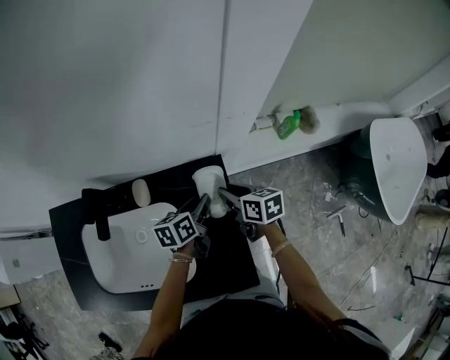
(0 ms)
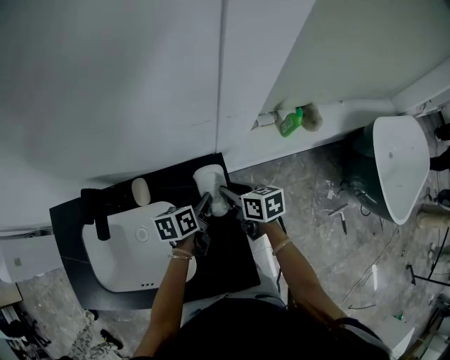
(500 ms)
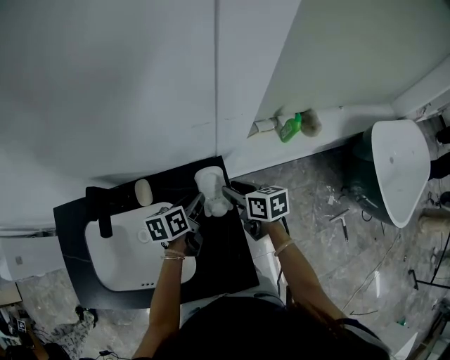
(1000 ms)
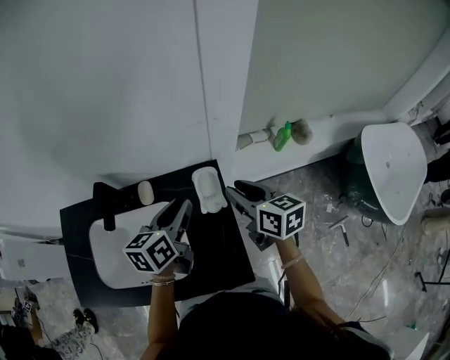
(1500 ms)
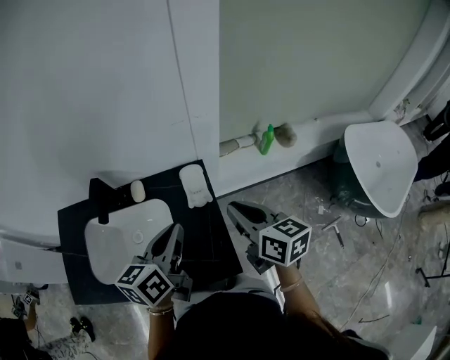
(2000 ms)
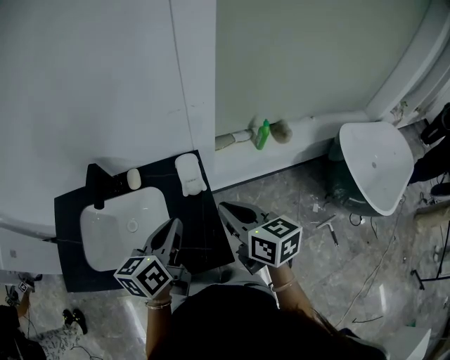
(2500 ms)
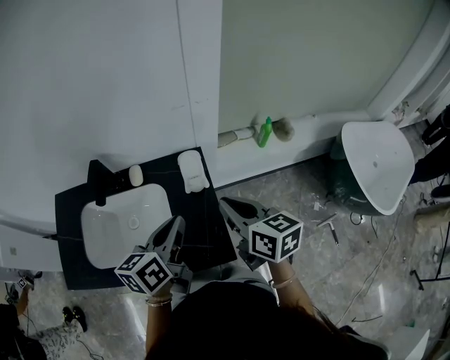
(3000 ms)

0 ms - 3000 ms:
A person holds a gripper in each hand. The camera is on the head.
0 ms - 1500 ms: Both grippers move upward, about 15 cm.
1500 ms - 3000 ms: The right gripper is displaced backward and upward by about 15 cm, and closes its fingers, while the left gripper moves backward, some 15 cm, and closes.

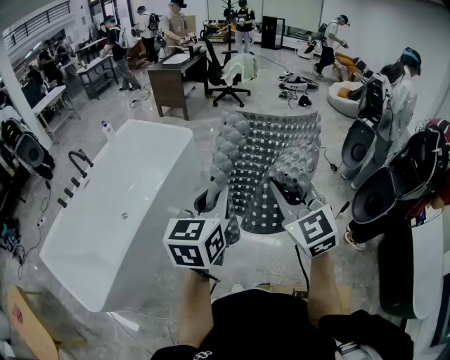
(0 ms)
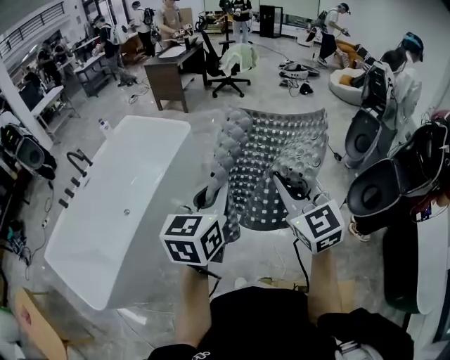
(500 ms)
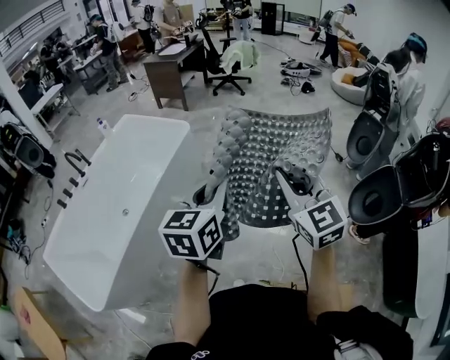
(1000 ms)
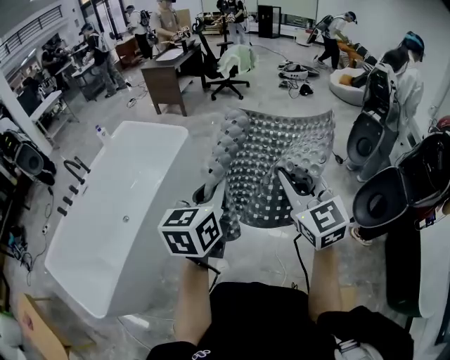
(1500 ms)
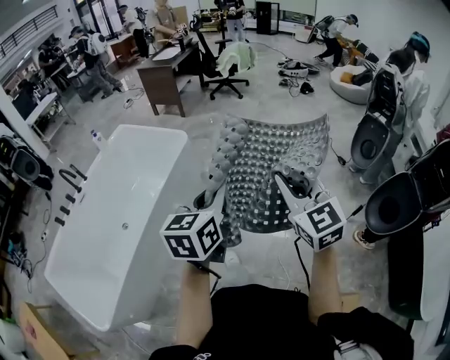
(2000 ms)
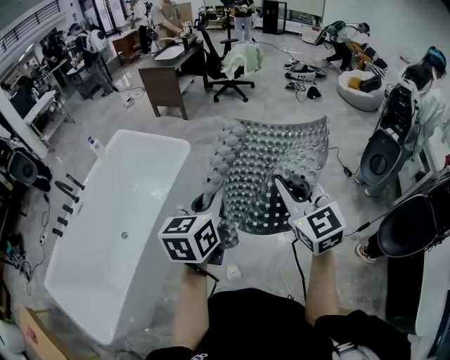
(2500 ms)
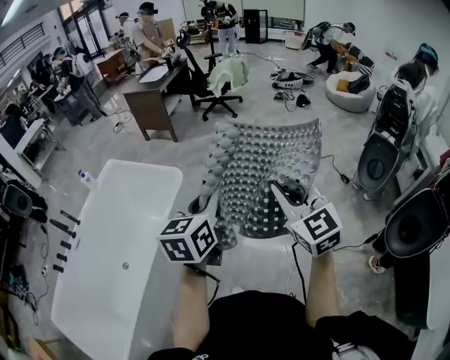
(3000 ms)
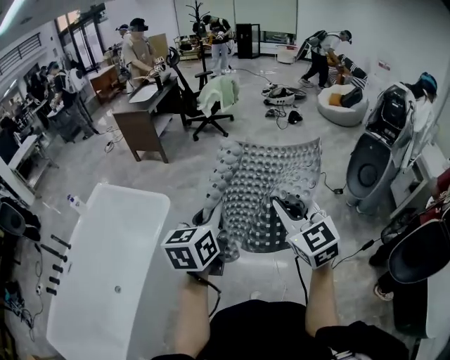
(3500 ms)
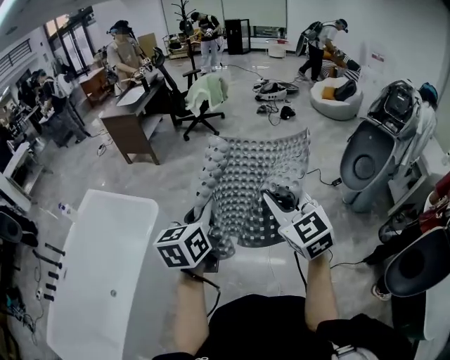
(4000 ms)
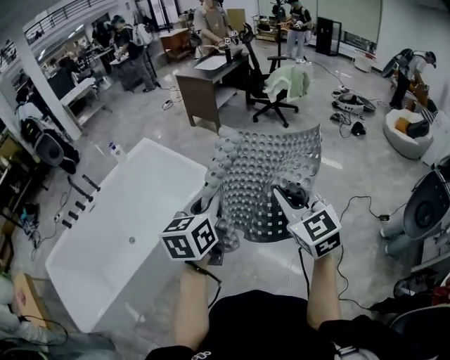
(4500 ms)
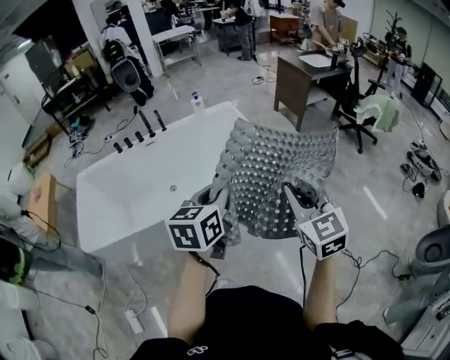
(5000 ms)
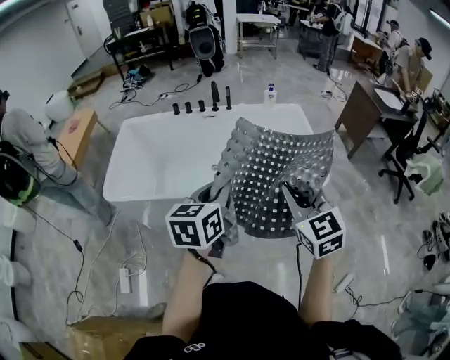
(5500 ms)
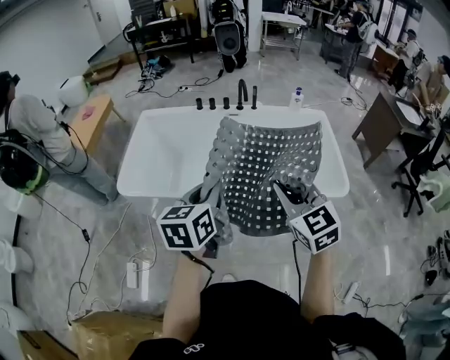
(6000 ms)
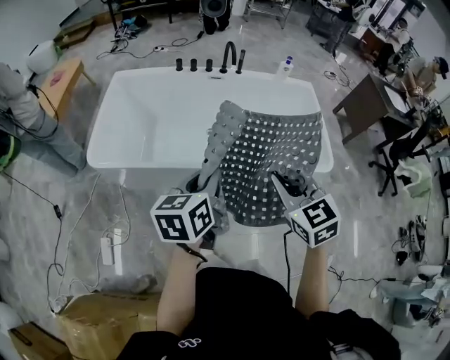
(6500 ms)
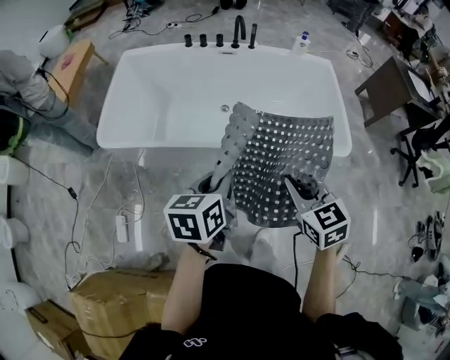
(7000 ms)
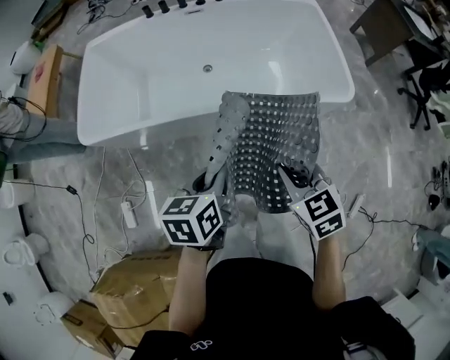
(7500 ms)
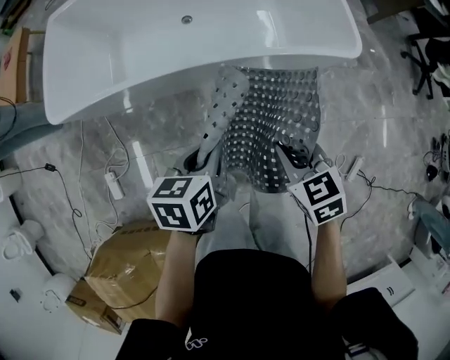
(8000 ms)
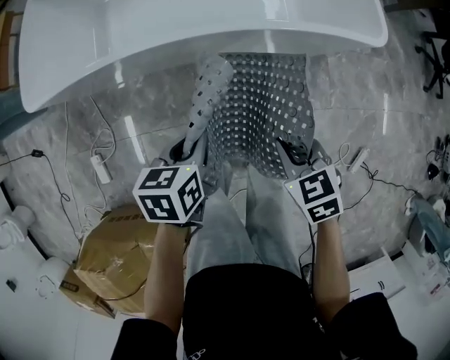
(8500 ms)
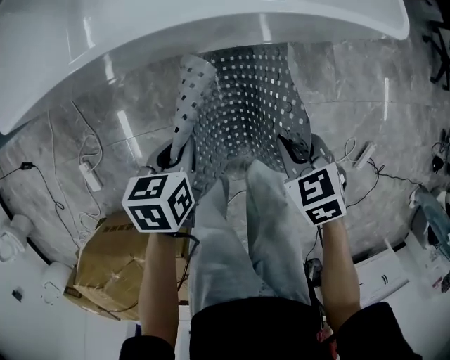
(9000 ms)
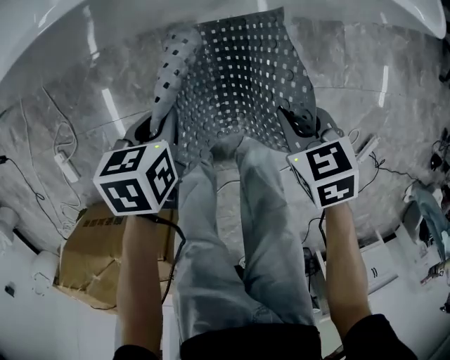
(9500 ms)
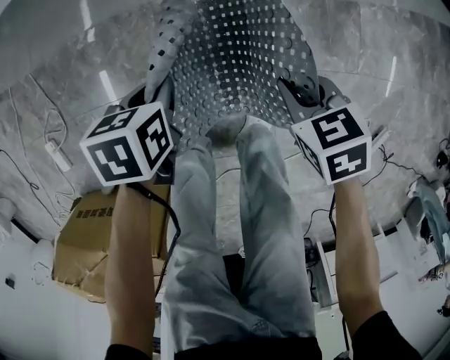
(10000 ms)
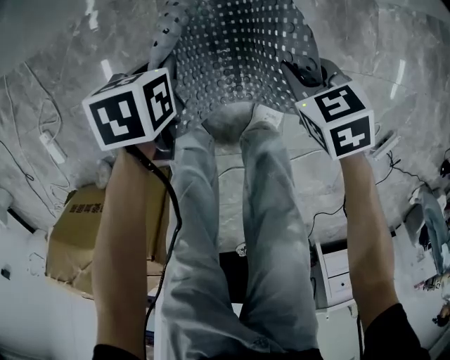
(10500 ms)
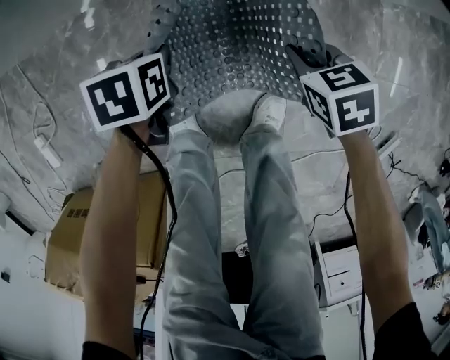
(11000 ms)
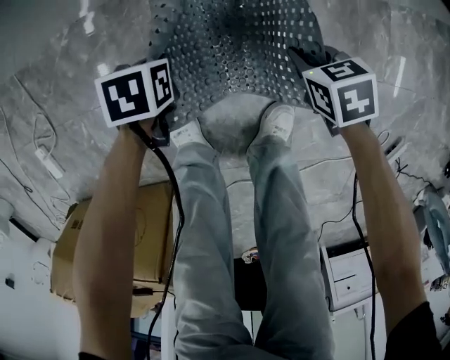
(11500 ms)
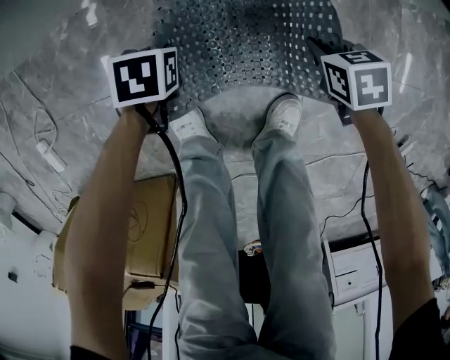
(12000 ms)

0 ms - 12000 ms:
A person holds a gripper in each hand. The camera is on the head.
0 ms - 2000 ms: Both grippers move forward, some 15 cm.
2000 ms - 4000 ms: Both grippers move forward, roughly 35 cm.
4000 ms - 6000 ms: The pair of grippers is taken about 60 cm. The left gripper rotates roughly 80 degrees, while the right gripper turns by roughly 80 degrees.
6000 ms - 8000 ms: The left gripper is displaced downward and to the right by roughly 30 cm, and turns by about 30 degrees. Meanwhile the right gripper heads downward, covering roughly 30 cm, and points its fingers about 30 degrees further downward.
8000 ms - 10000 ms: Both grippers travel together downward, roughly 40 cm. The left gripper turns by about 20 degrees.
10000 ms - 12000 ms: Both grippers move downward, some 20 cm.

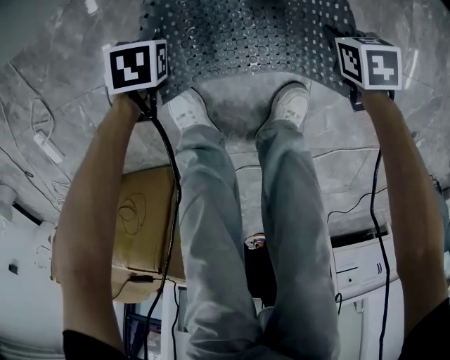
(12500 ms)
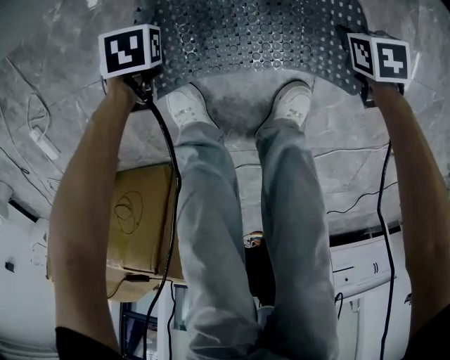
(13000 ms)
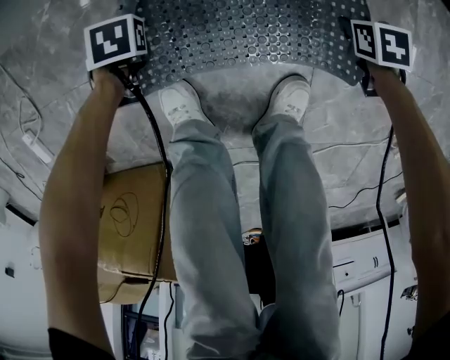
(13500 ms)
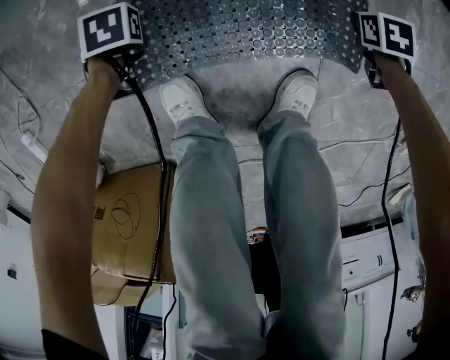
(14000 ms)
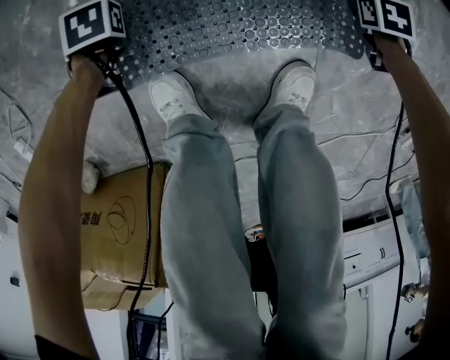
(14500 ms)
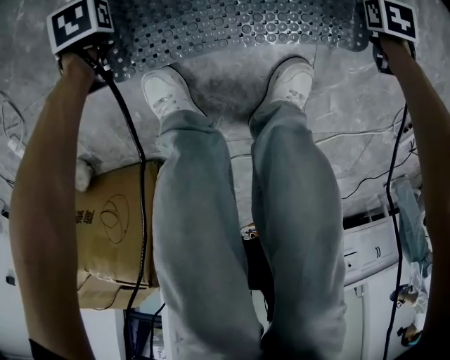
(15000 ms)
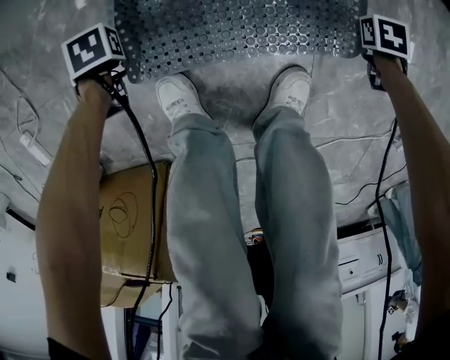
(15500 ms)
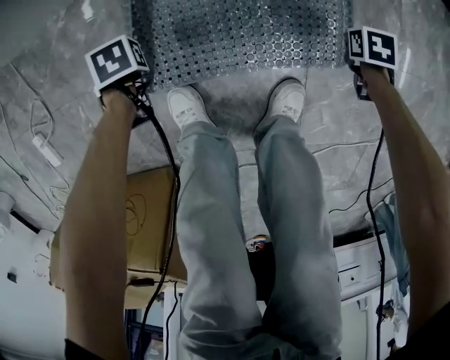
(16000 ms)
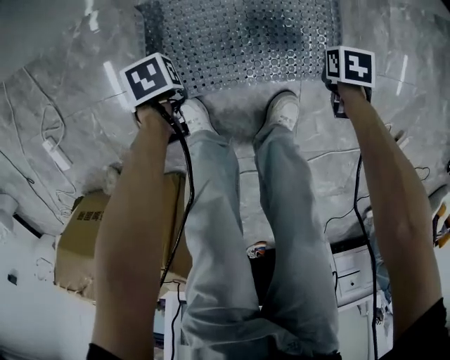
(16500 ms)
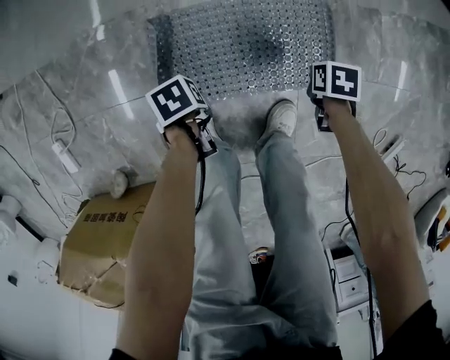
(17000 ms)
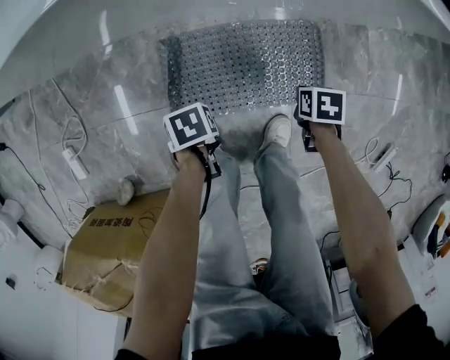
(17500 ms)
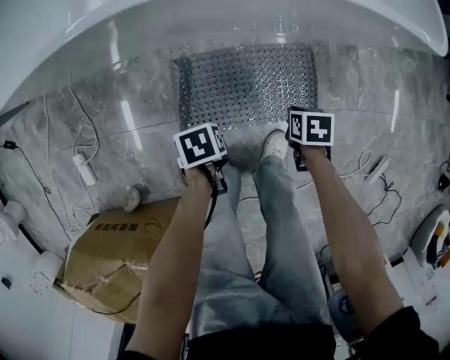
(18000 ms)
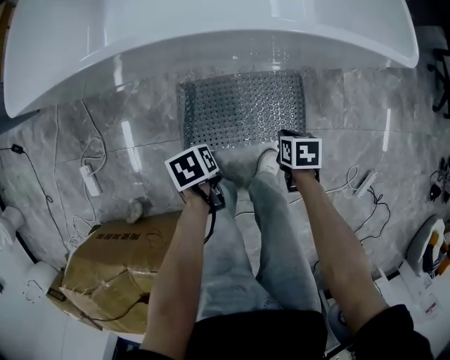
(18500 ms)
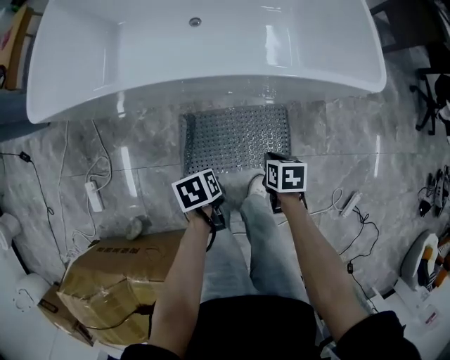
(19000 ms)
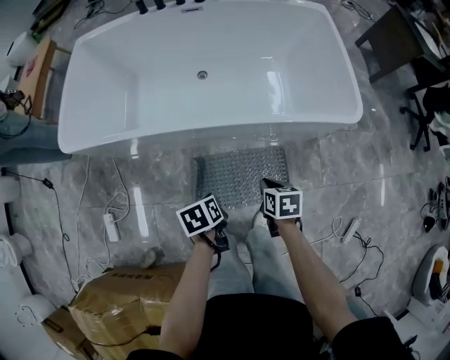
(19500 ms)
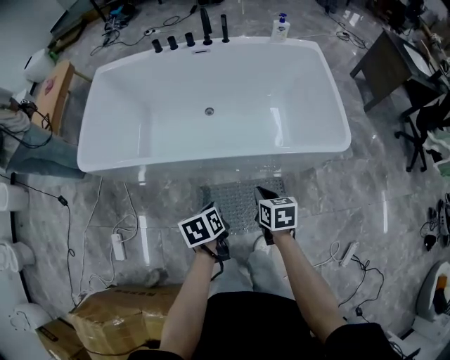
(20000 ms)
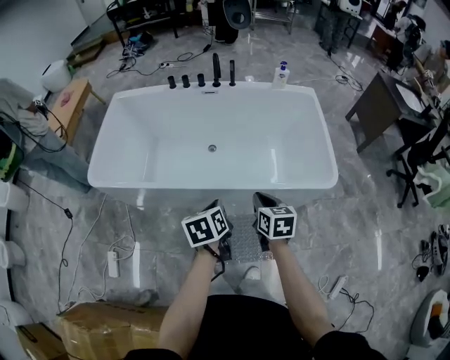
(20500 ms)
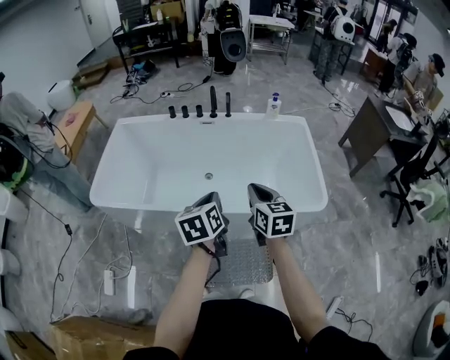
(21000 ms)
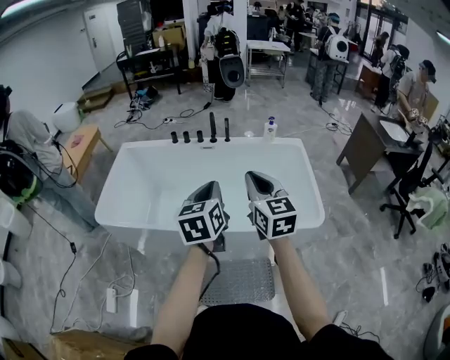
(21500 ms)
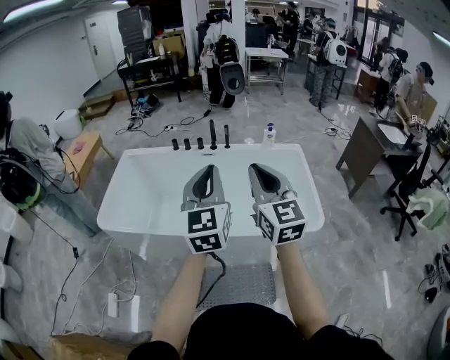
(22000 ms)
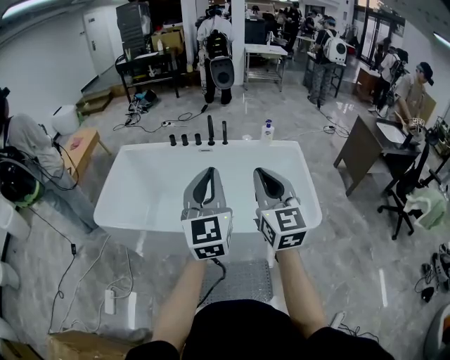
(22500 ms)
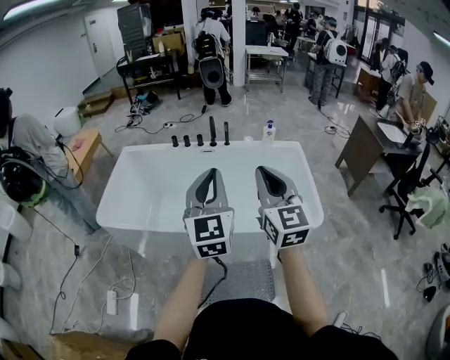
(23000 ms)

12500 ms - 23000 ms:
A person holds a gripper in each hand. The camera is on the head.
12500 ms - 14500 ms: The left gripper ends up approximately 10 cm from where it was, while the right gripper ends up roughly 10 cm from where it was.
14500 ms - 16500 ms: Both grippers travel together upward, roughly 10 cm.
16500 ms - 19000 ms: Both grippers move upward, about 35 cm. The left gripper rotates roughly 20 degrees. The right gripper changes its angle by about 20 degrees.
19000 ms - 21000 ms: The right gripper is displaced upward by some 50 cm, and points its fingers approximately 50 degrees further upward, while the left gripper travels upward and forward by approximately 50 cm, and points its fingers about 40 degrees further upward.
21000 ms - 23000 ms: Both grippers travel together upward, roughly 20 cm. The left gripper angles its fingers upward, by about 40 degrees. Meanwhile the right gripper turns by approximately 30 degrees.

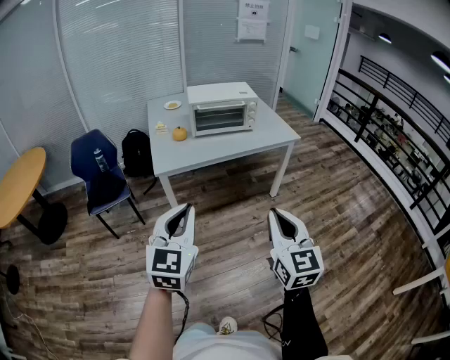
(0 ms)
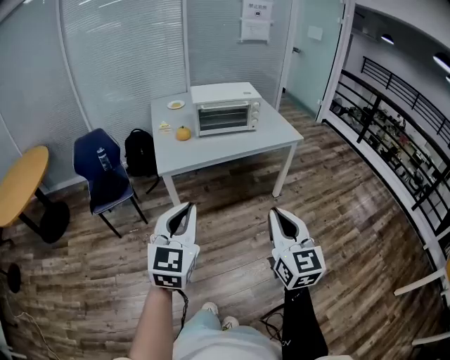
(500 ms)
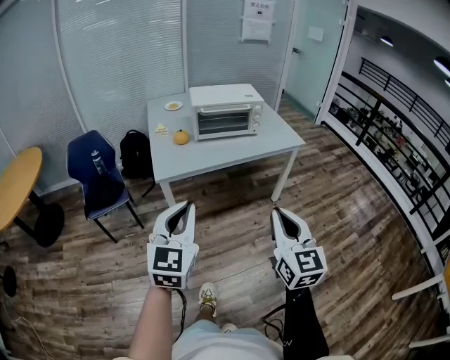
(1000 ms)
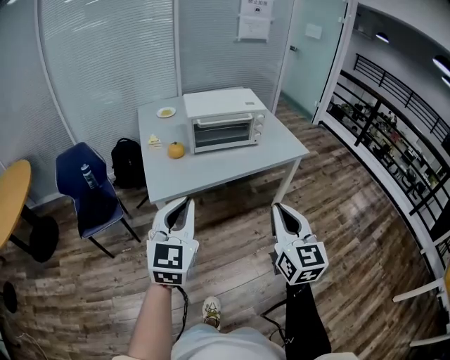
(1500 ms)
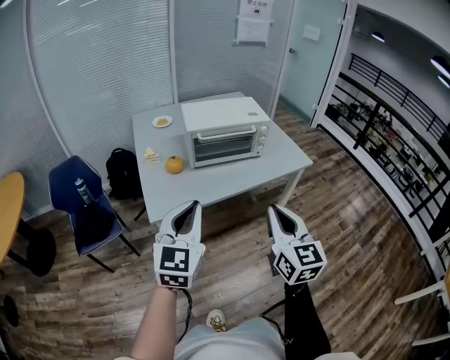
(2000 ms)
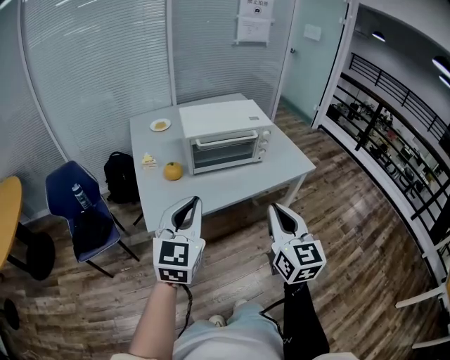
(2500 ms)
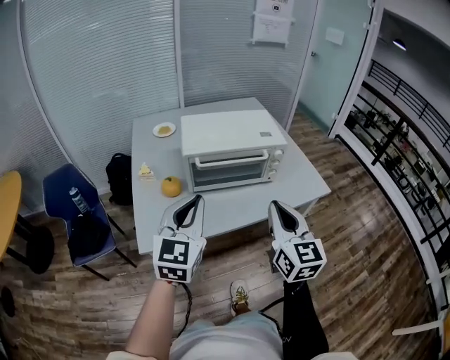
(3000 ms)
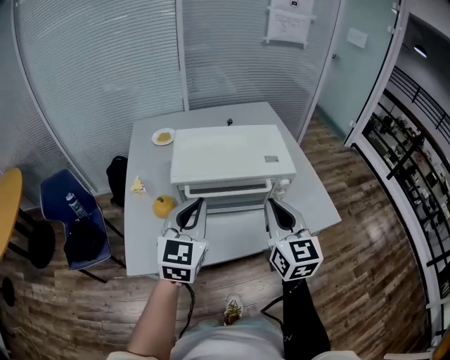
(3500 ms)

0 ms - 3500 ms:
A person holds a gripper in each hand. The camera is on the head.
0 ms - 2000 ms: Both grippers travel together forward, roughly 30 cm.
2000 ms - 3500 ms: Both grippers travel together forward, approximately 35 cm.
